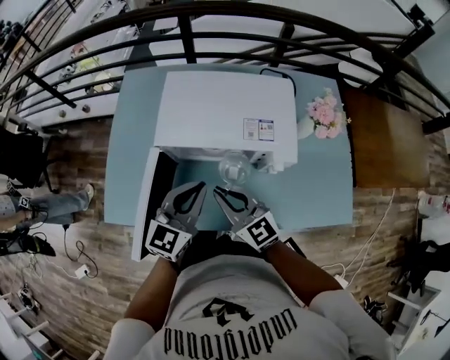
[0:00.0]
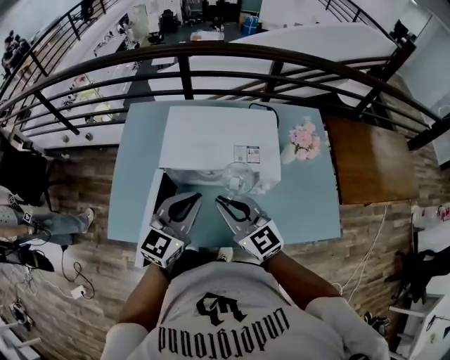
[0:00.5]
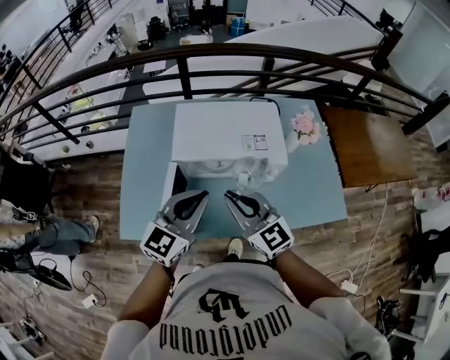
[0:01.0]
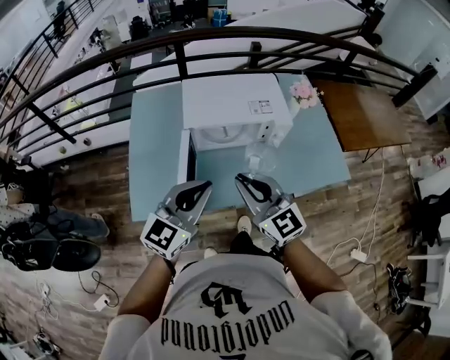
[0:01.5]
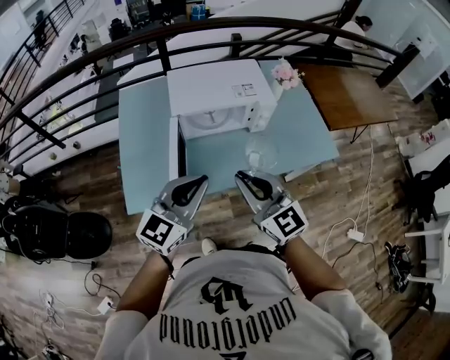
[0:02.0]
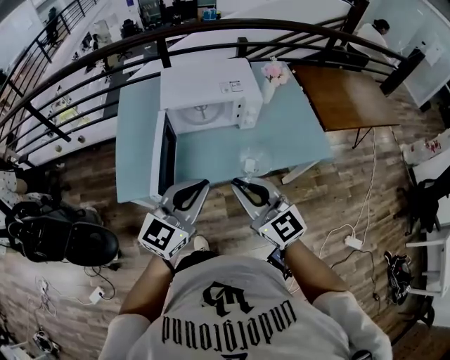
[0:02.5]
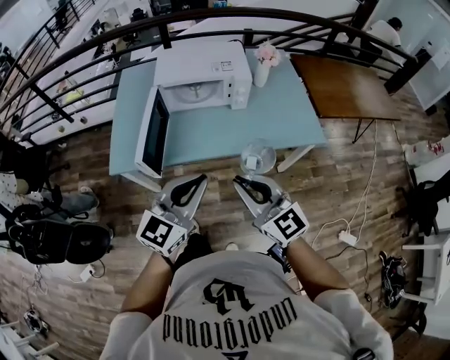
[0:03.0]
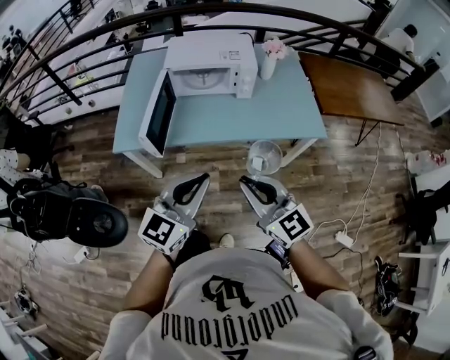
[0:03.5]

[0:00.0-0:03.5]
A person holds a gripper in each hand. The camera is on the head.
0:00.0 to 0:02.0: The grippers both shift backward and upward by approximately 25 cm. The right gripper rotates approximately 20 degrees, while the left gripper changes its angle by some 20 degrees.
0:02.0 to 0:03.5: The grippers both shift backward and to the right by approximately 25 cm.

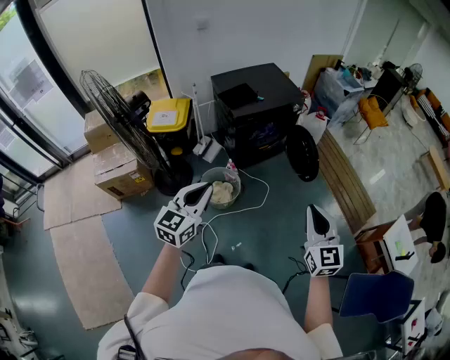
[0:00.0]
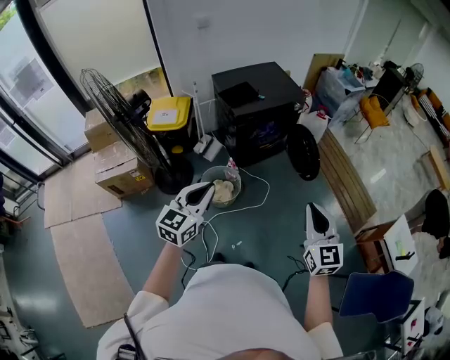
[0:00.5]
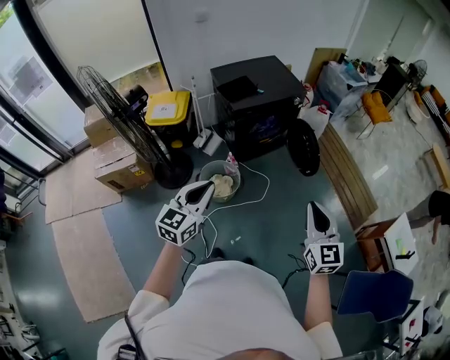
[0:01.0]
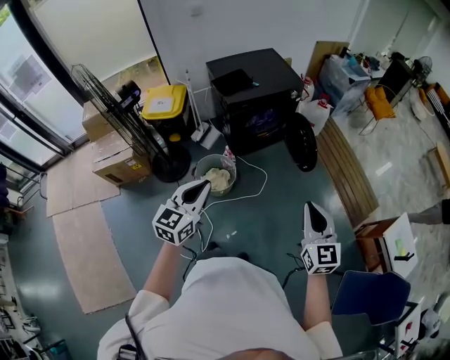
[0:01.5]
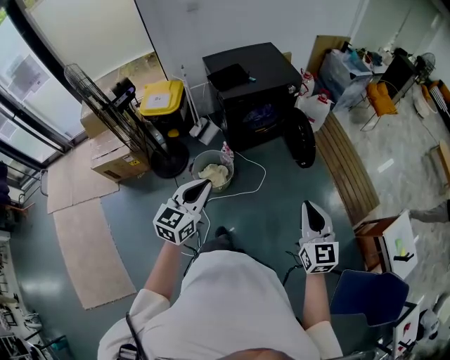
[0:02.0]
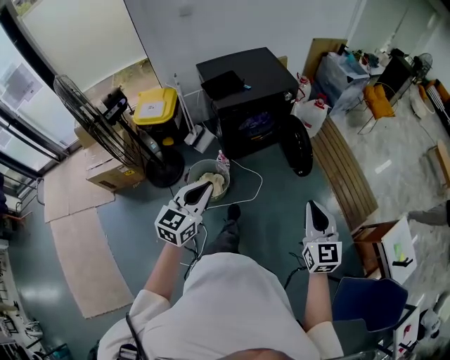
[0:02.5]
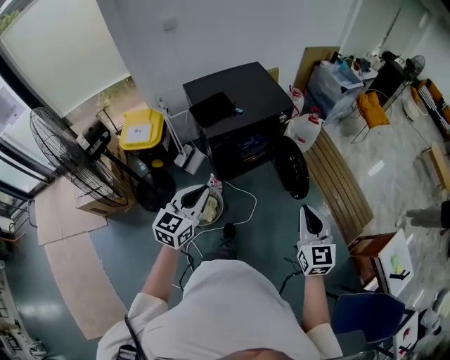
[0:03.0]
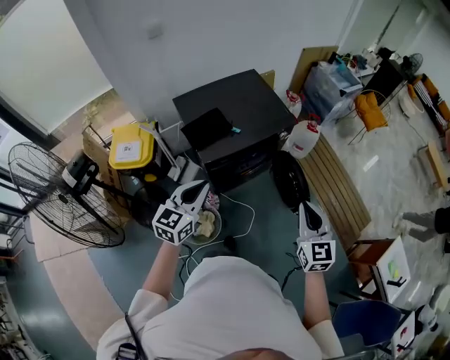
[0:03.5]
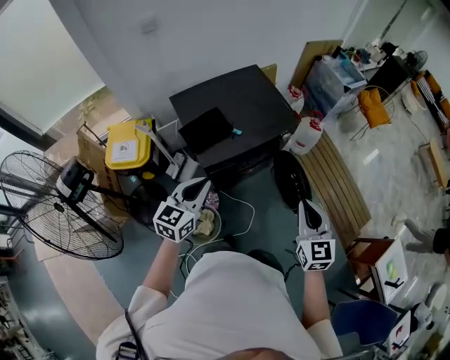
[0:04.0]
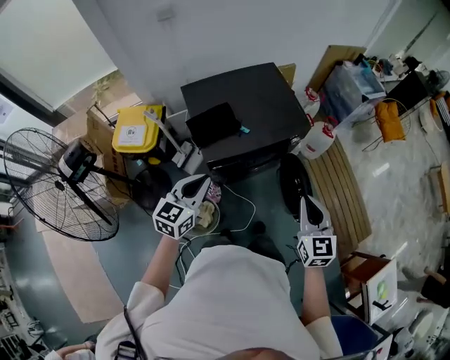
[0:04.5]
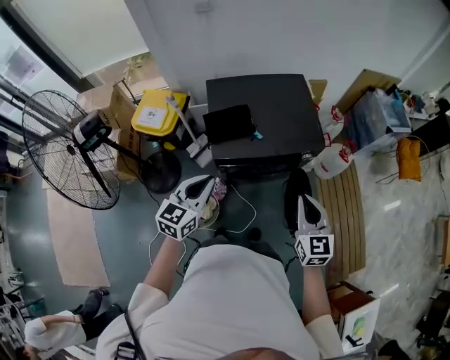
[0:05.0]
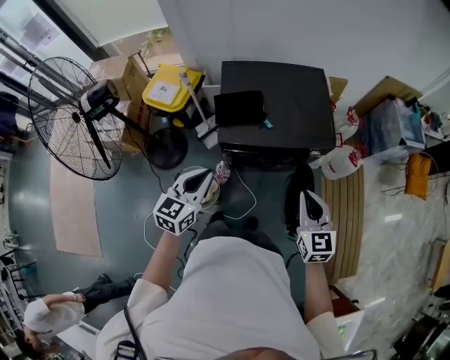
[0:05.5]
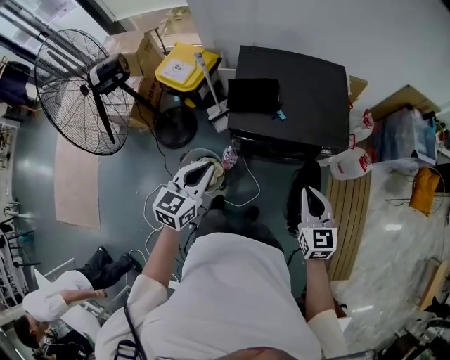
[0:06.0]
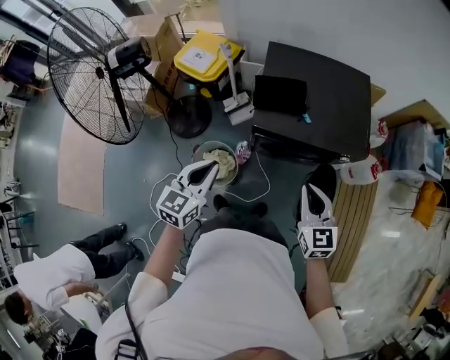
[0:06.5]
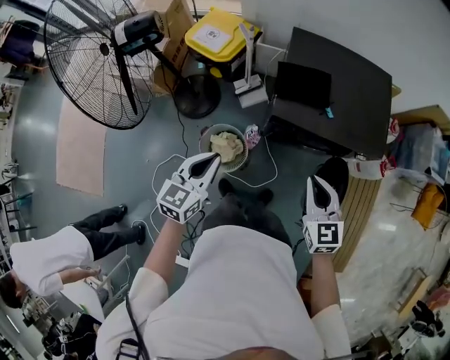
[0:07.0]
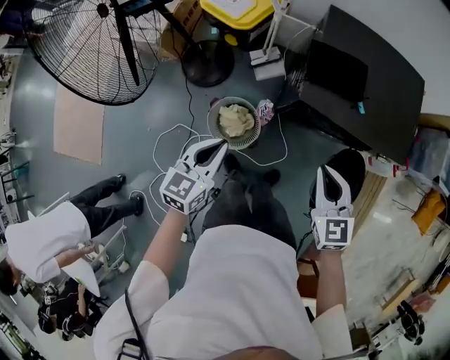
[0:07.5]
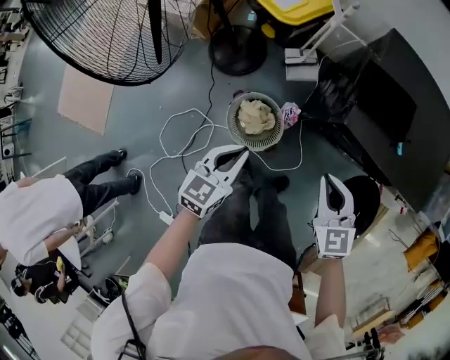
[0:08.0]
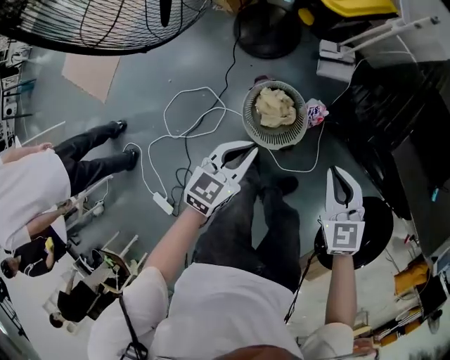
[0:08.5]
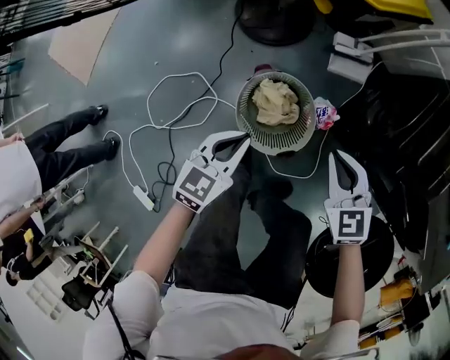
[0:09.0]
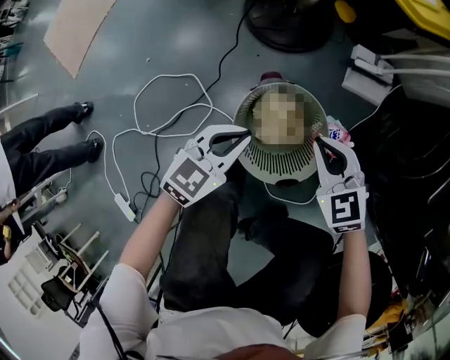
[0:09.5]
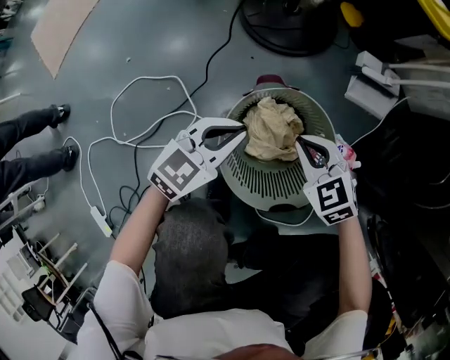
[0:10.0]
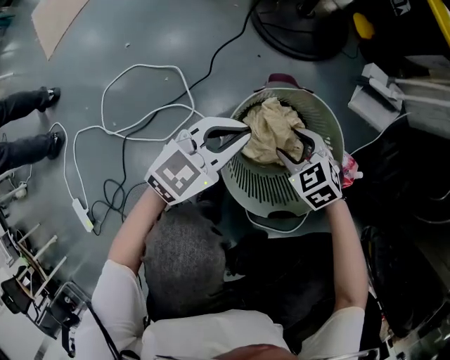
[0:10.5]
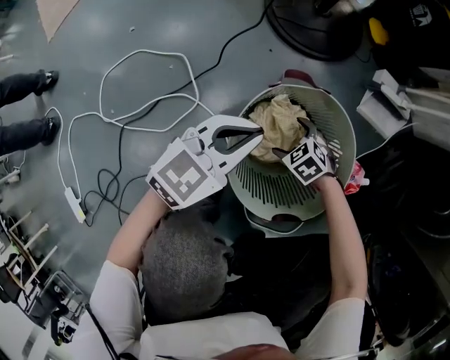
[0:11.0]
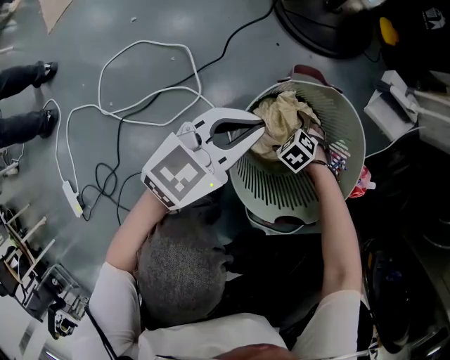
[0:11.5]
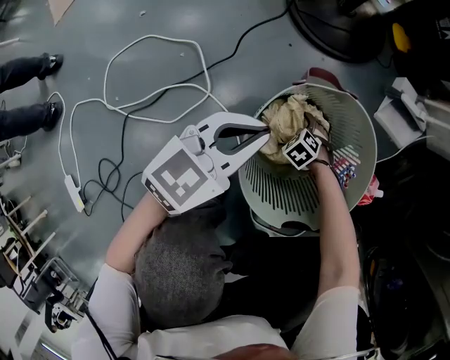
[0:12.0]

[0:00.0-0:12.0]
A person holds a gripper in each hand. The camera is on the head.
0:00.0 to 0:02.0: The left gripper heads to the right, covering approximately 10 cm; the right gripper is displaced to the right and downward by roughly 10 cm.
0:02.0 to 0:04.0: Both grippers are carried forward, roughly 50 cm.
0:04.0 to 0:06.0: The left gripper moves some 5 cm, and changes its angle by some 30 degrees. The right gripper shifts by roughly 15 cm, and changes its angle by some 40 degrees.
0:06.0 to 0:08.0: Both grippers travel together to the left and downward, about 30 cm. The right gripper swivels about 30 degrees.
0:08.0 to 0:10.0: The two grippers go approximately 60 cm downward. The right gripper rotates some 50 degrees.
0:10.0 to 0:12.0: The right gripper shifts some 35 cm downward, points its fingers roughly 30 degrees further downward, and opens up, while the left gripper moves about 5 cm.

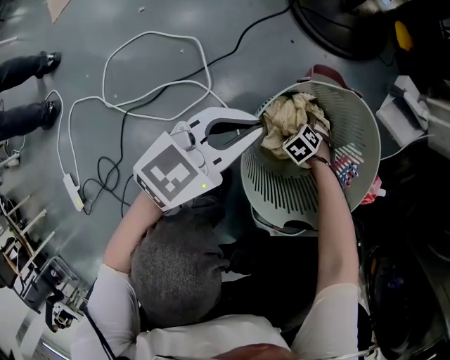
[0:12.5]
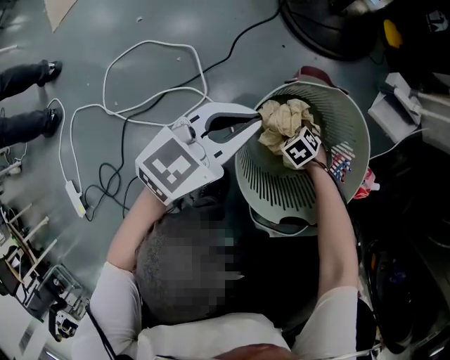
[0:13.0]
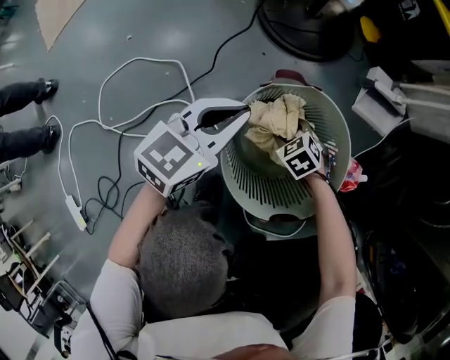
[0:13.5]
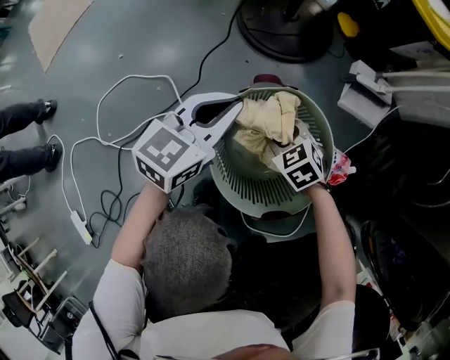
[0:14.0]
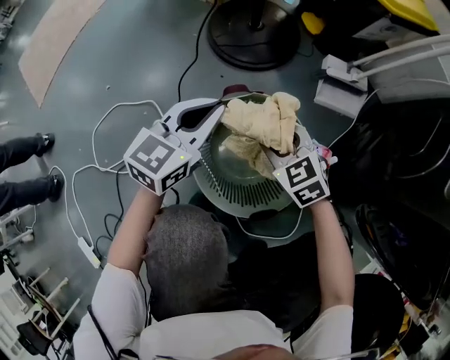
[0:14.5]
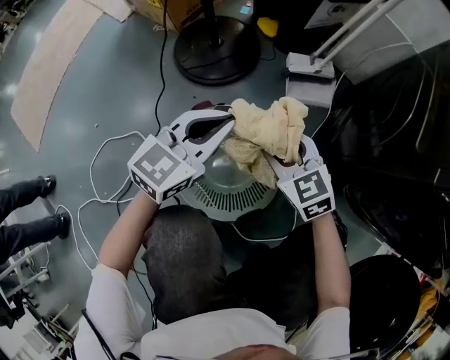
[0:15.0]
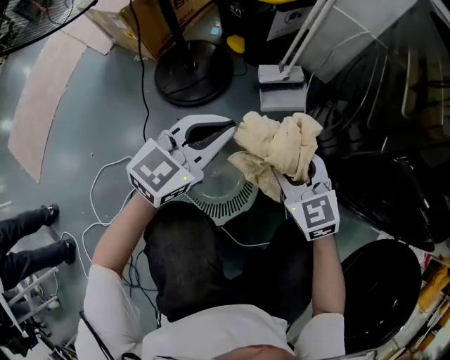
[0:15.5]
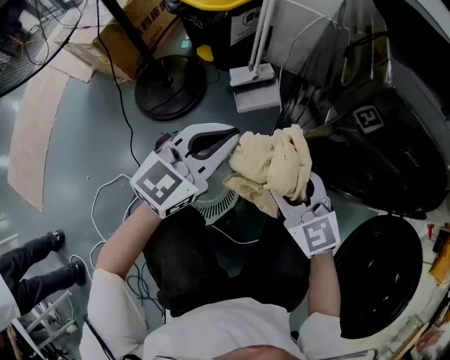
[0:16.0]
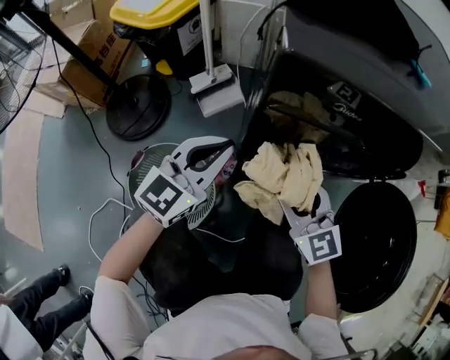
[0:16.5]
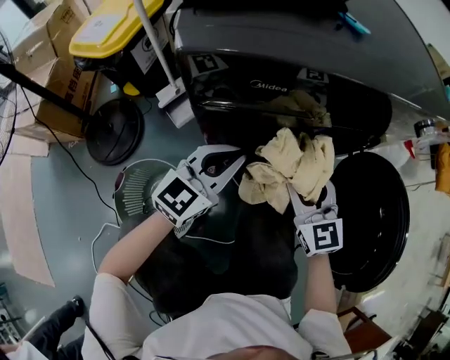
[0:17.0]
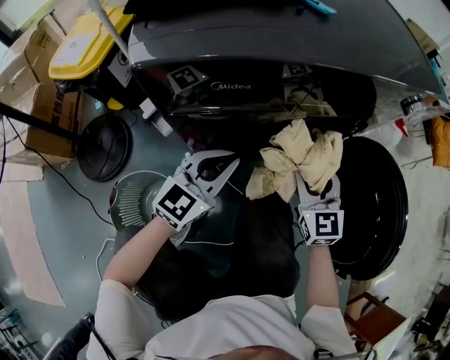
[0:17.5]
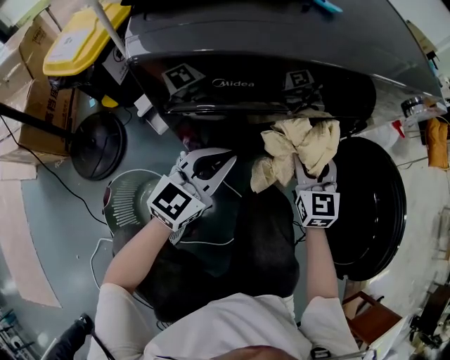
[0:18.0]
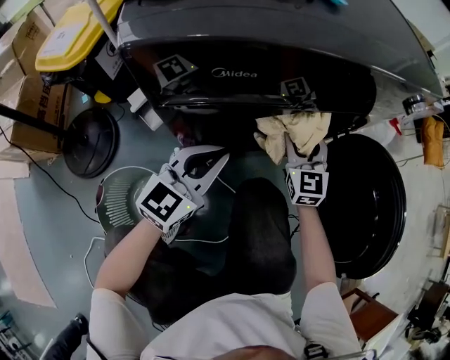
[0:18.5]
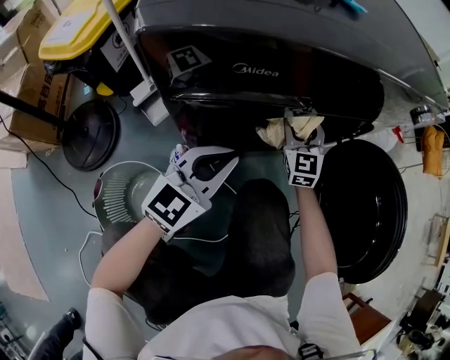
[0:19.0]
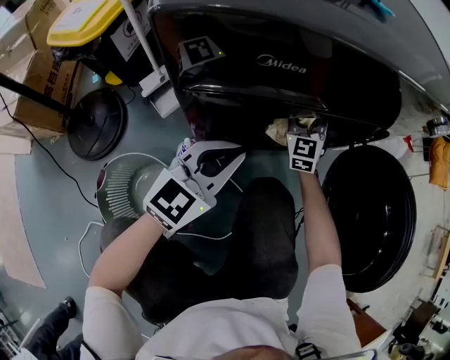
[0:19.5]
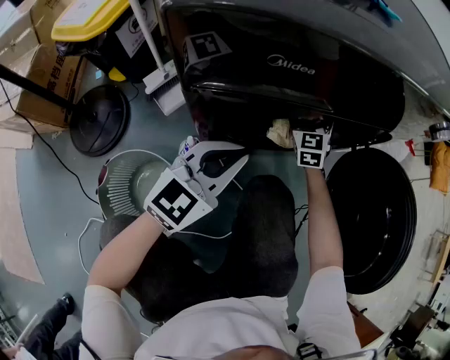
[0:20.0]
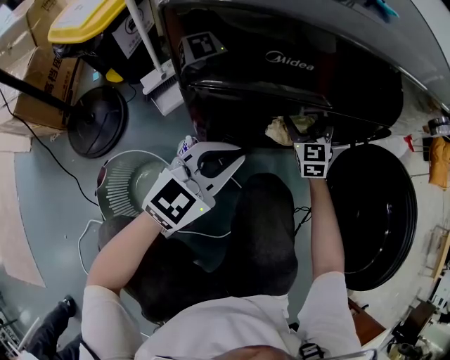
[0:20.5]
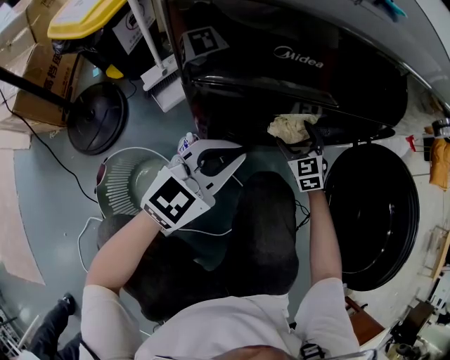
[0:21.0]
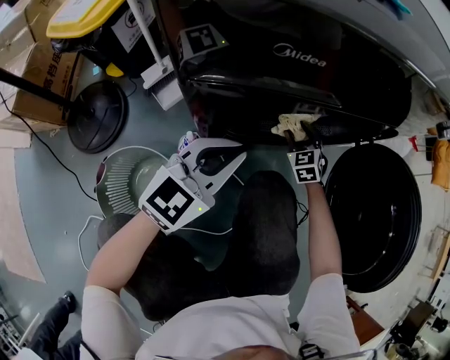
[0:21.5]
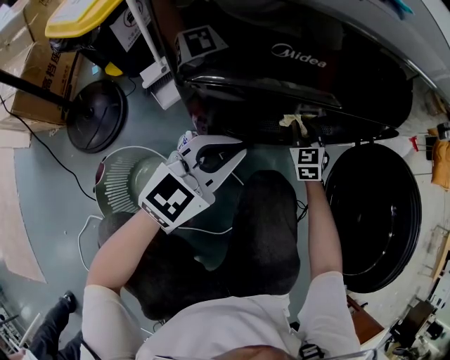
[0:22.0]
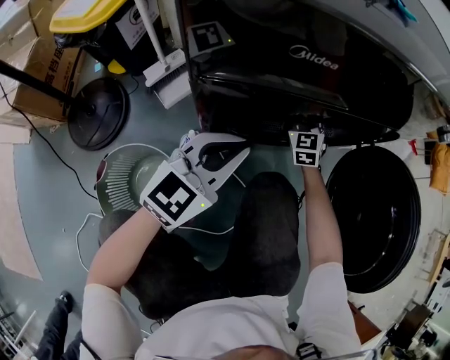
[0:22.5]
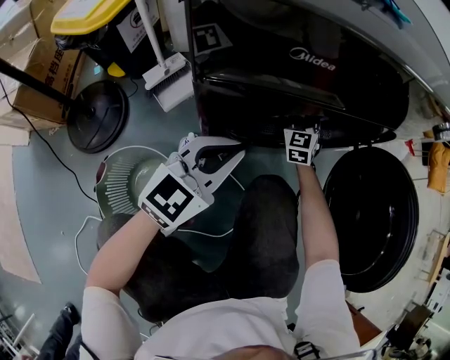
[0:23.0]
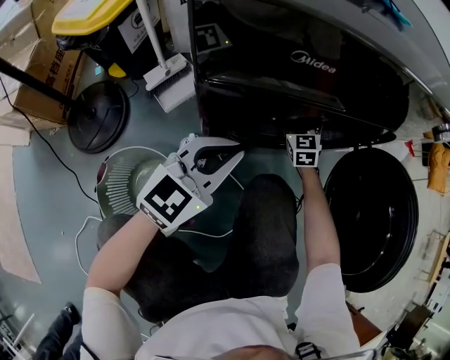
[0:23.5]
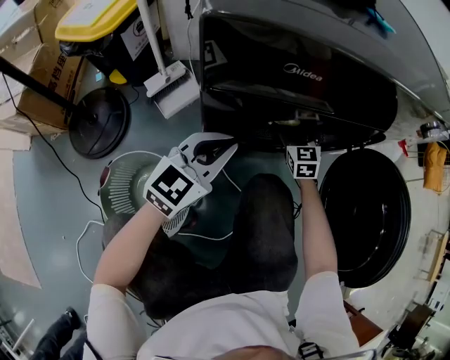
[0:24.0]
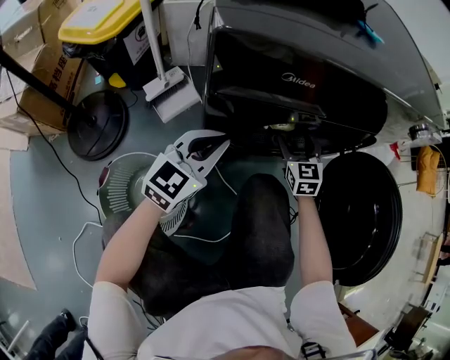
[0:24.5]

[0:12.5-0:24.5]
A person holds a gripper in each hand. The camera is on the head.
0:12.5 to 0:14.5: The right gripper goes approximately 35 cm upward, angles its fingers upward, by roughly 40 degrees, and closes. The left gripper shifts by approximately 15 cm.
0:14.5 to 0:16.5: The right gripper ends up some 40 cm from where it was, and swivels approximately 50 degrees. The left gripper ends up roughly 40 cm from where it was, and turns by about 50 degrees.
0:16.5 to 0:18.5: The left gripper ends up approximately 15 cm from where it was; the right gripper ends up some 25 cm from where it was, and changes its angle by some 40 degrees.
0:18.5 to 0:20.5: The right gripper heads downward and forward, covering some 10 cm, and opens its fingers.
0:20.5 to 0:22.5: The right gripper reaches approximately 10 cm downward, then returns, and closes its fingers.
0:22.5 to 0:24.5: The left gripper shifts roughly 5 cm to the left; the right gripper is displaced backward and upward by some 10 cm, and opens.
